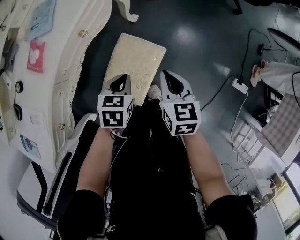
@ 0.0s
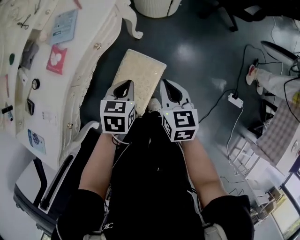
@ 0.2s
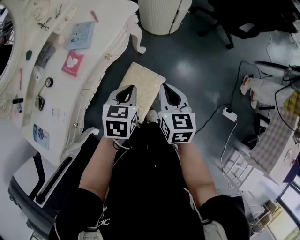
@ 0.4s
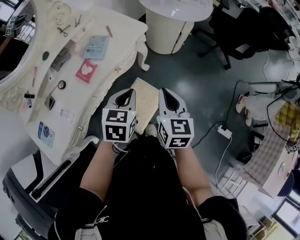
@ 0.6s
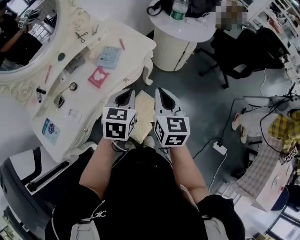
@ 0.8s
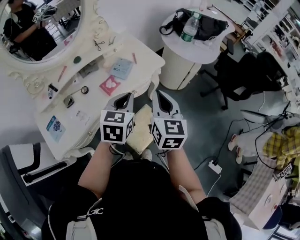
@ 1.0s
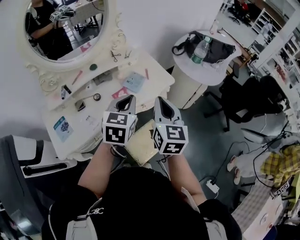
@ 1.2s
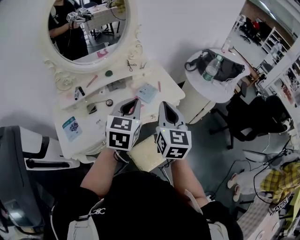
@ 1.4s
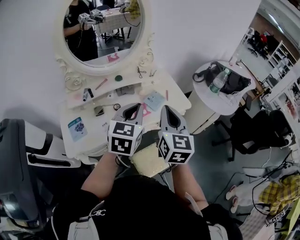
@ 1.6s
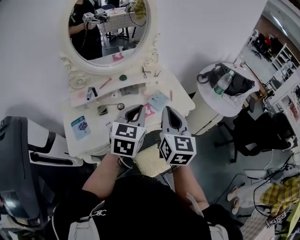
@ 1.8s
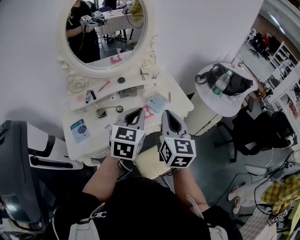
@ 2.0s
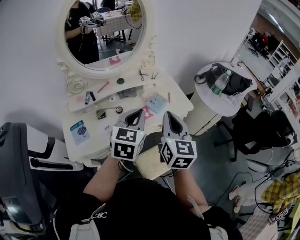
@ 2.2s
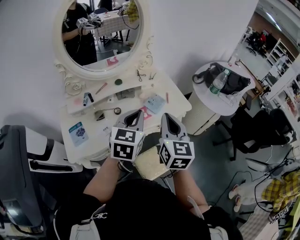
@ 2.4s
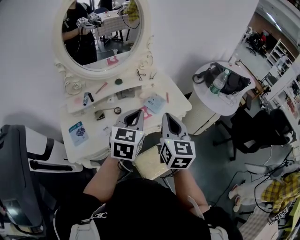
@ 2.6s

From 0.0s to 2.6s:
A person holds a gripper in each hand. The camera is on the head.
From 0.0s to 1.2s: Both grippers move upward, about 40 cm. The left gripper angles its fingers upward, by some 30 degrees. Meanwhile the right gripper rotates roughly 40 degrees.
From 1.2s to 2.6s: The grippers both shift to the left by approximately 5 cm.

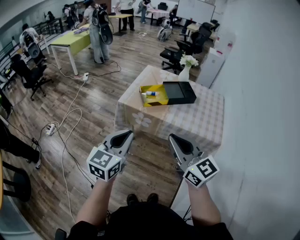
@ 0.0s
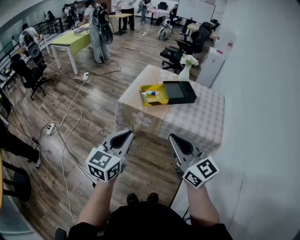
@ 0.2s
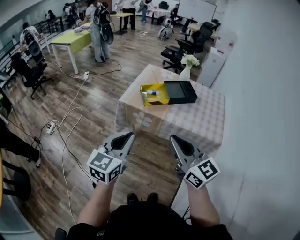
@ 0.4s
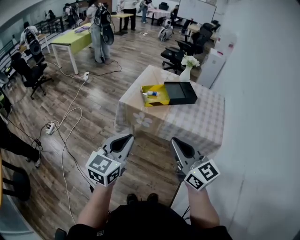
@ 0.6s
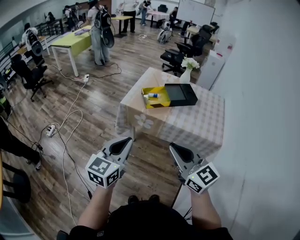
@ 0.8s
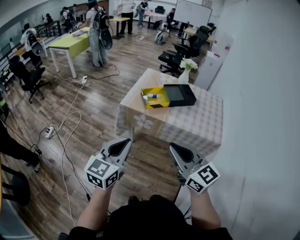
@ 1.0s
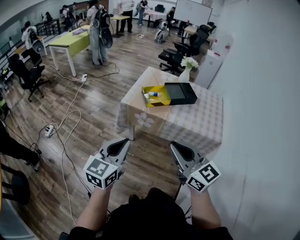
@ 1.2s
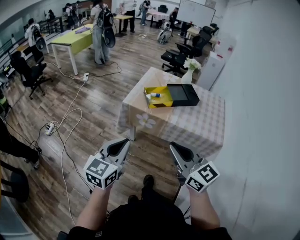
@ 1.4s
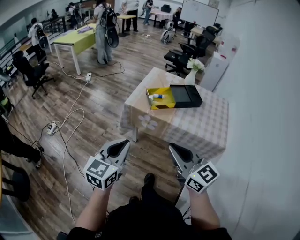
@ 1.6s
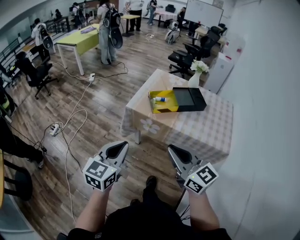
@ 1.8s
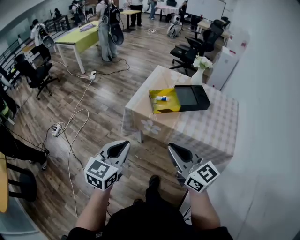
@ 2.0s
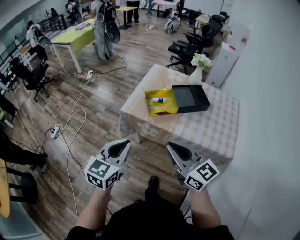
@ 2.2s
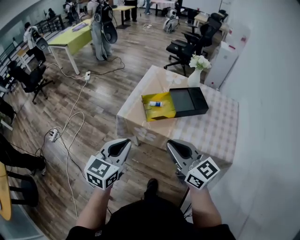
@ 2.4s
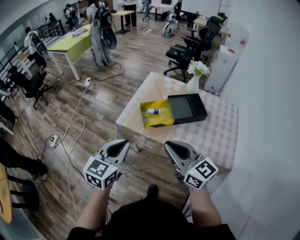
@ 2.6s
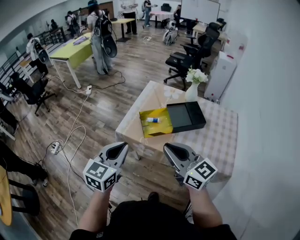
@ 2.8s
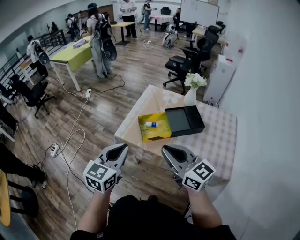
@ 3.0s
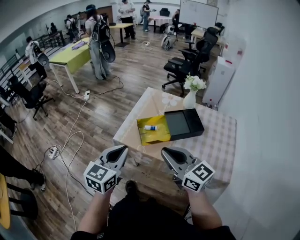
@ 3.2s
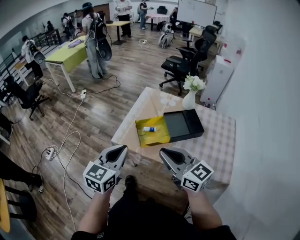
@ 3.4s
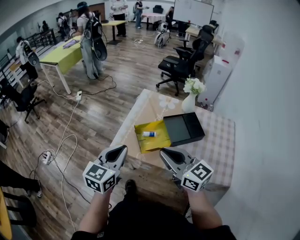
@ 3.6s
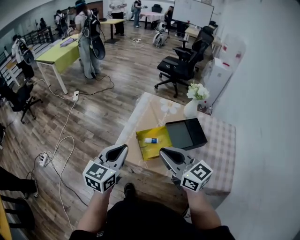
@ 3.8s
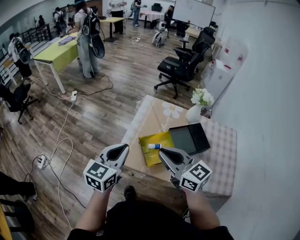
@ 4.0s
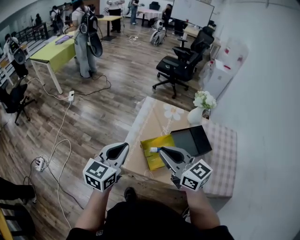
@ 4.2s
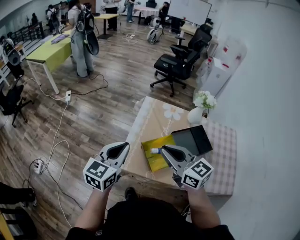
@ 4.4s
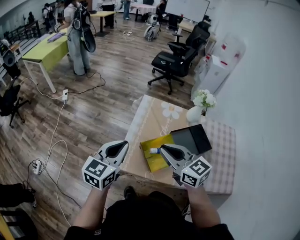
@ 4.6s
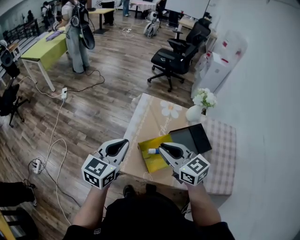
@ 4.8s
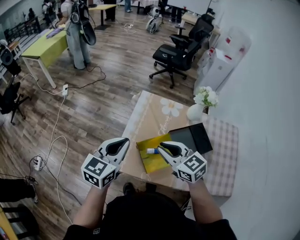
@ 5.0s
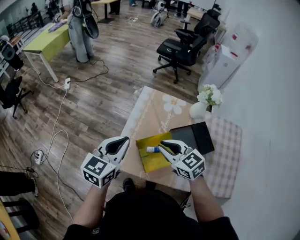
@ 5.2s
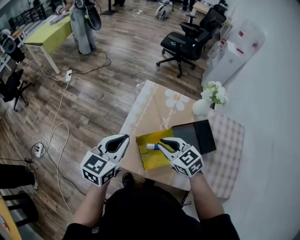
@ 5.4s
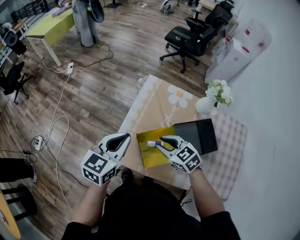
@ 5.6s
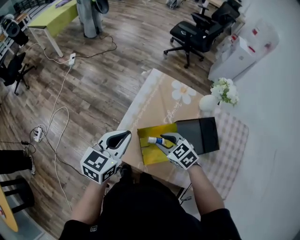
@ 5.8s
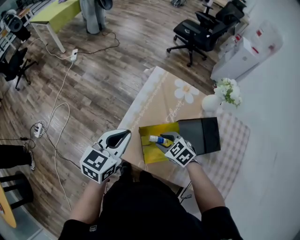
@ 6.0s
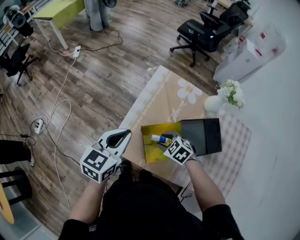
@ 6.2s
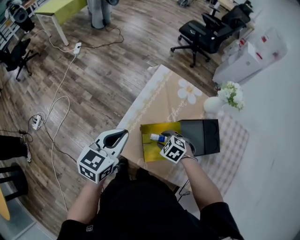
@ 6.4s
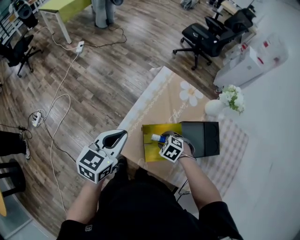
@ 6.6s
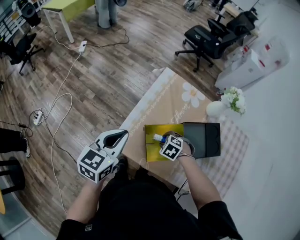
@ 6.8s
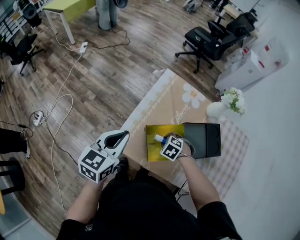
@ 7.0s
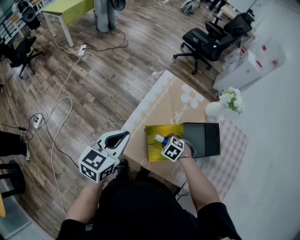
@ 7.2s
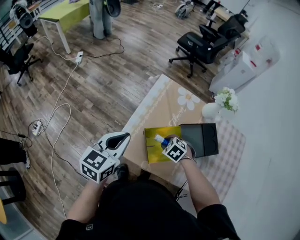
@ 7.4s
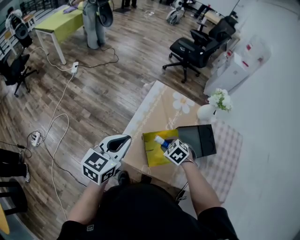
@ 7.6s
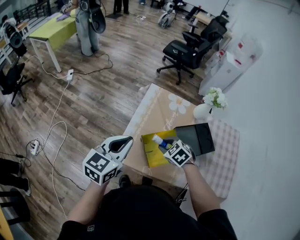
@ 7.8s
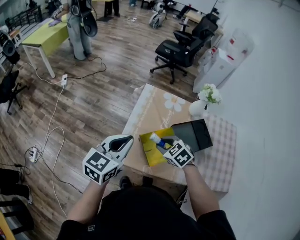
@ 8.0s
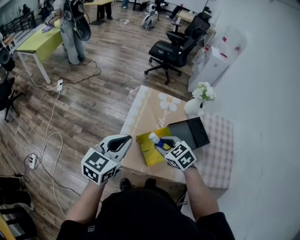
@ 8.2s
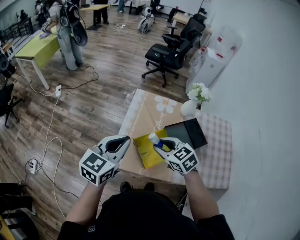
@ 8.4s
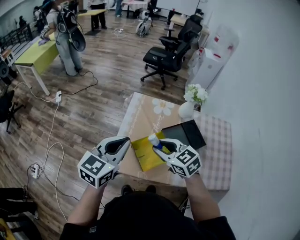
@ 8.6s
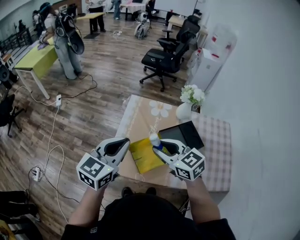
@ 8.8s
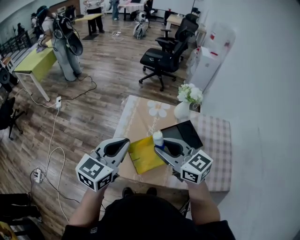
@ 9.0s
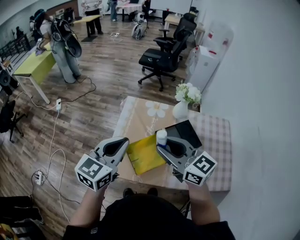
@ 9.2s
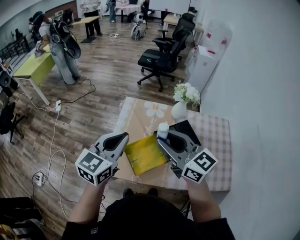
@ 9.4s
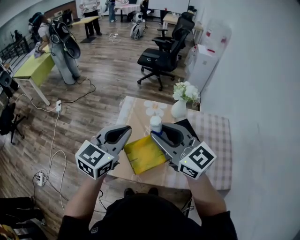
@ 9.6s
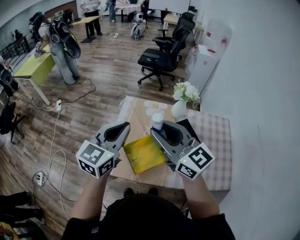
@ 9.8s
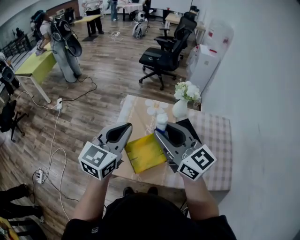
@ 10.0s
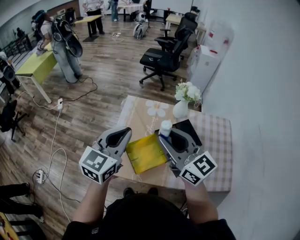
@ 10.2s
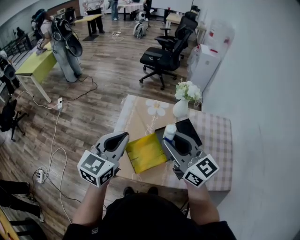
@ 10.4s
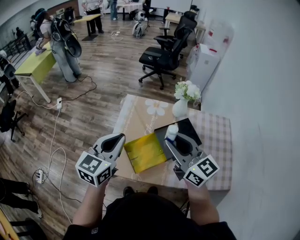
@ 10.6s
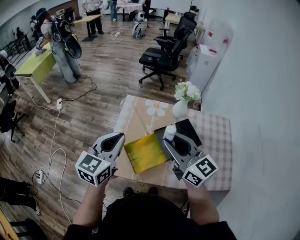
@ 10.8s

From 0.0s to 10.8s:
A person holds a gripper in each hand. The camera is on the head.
From 0.0s to 1.6s: The left gripper moves to the left, roughly 5 cm, while the right gripper changes place by roughly 5 cm.
From 1.6s to 3.0s: Both grippers travel together forward and to the right, some 25 cm.
From 3.0s to 4.6s: The two grippers go about 25 cm forward.
From 4.6s to 6.2s: The right gripper moves downward, approximately 25 cm, tilts its fingers some 50 degrees downward, and opens, while the left gripper goes approximately 10 cm downward.
From 6.2s to 7.8s: The right gripper goes approximately 5 cm upward; the left gripper ends up about 5 cm from where it was.
From 7.8s to 9.2s: The right gripper goes roughly 25 cm upward, and points its fingers approximately 60 degrees further upward. The left gripper goes about 15 cm to the right and upward.

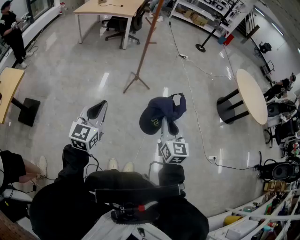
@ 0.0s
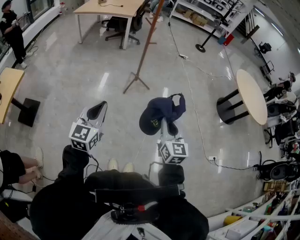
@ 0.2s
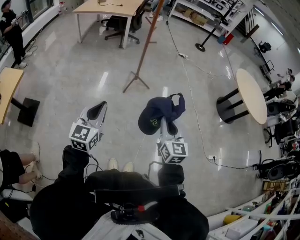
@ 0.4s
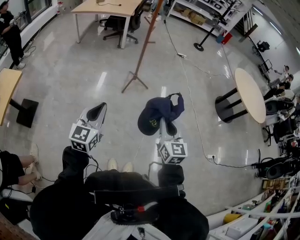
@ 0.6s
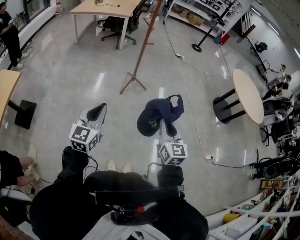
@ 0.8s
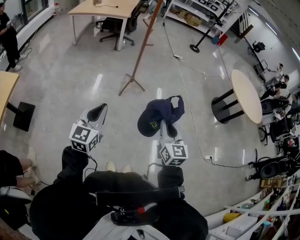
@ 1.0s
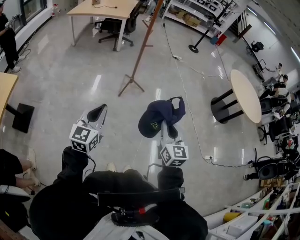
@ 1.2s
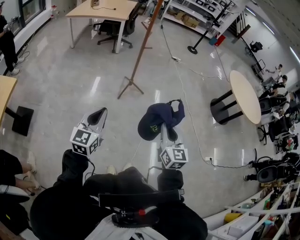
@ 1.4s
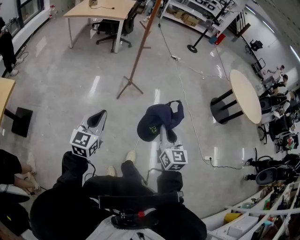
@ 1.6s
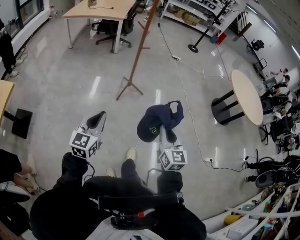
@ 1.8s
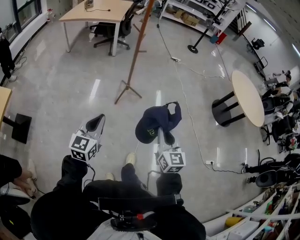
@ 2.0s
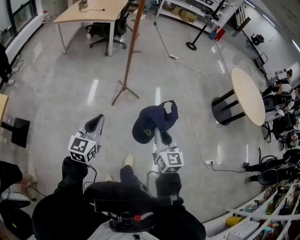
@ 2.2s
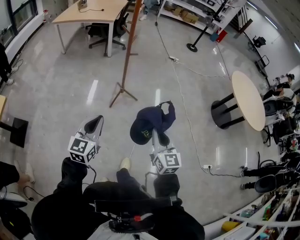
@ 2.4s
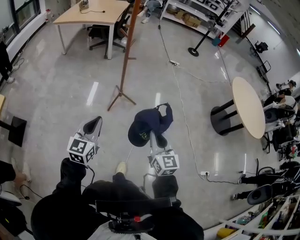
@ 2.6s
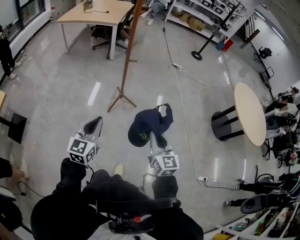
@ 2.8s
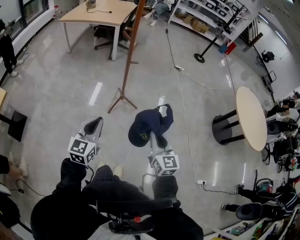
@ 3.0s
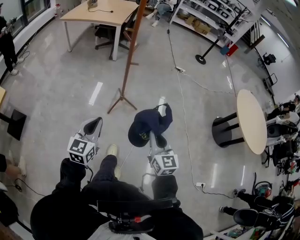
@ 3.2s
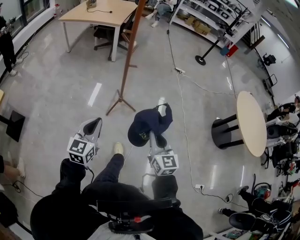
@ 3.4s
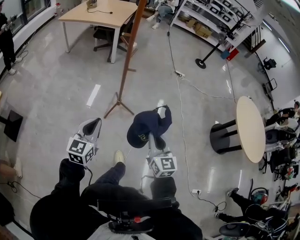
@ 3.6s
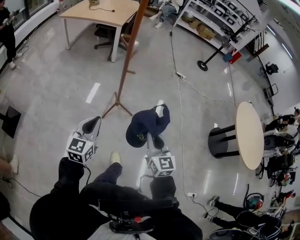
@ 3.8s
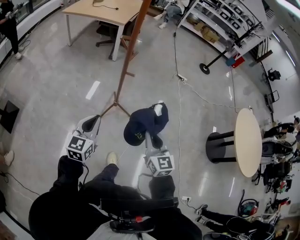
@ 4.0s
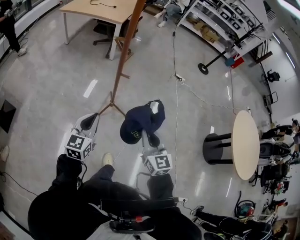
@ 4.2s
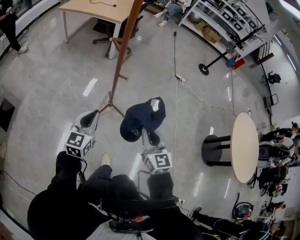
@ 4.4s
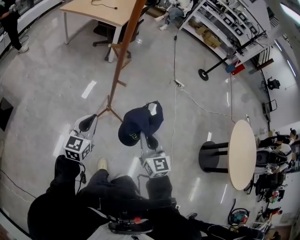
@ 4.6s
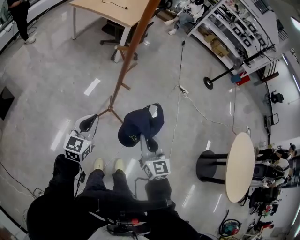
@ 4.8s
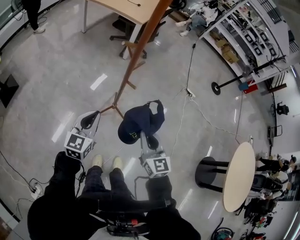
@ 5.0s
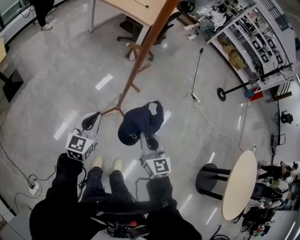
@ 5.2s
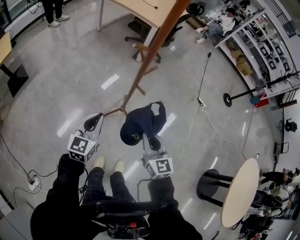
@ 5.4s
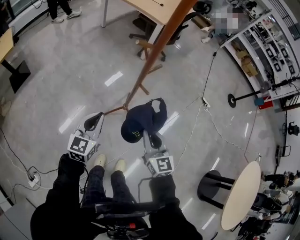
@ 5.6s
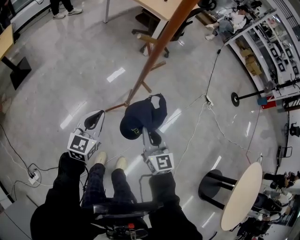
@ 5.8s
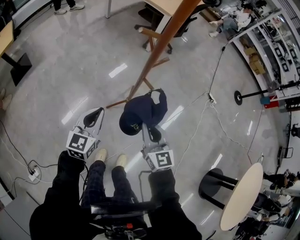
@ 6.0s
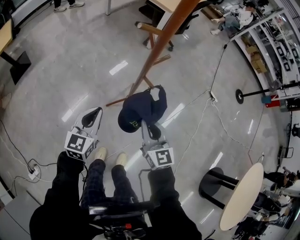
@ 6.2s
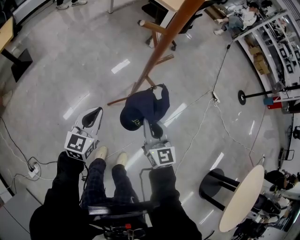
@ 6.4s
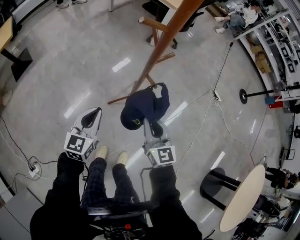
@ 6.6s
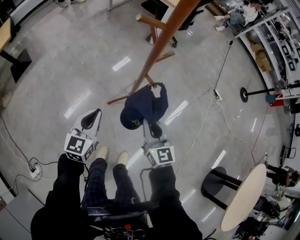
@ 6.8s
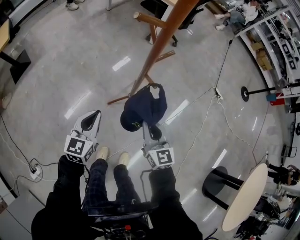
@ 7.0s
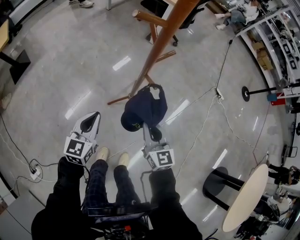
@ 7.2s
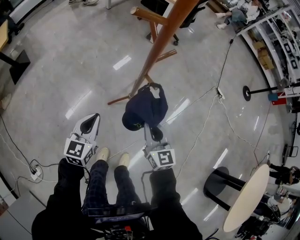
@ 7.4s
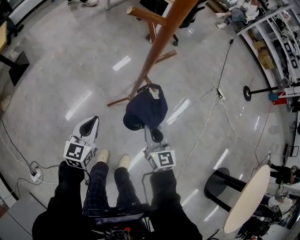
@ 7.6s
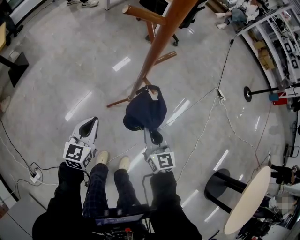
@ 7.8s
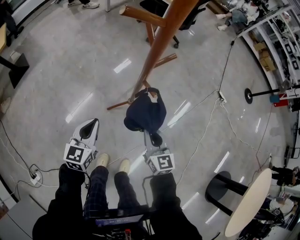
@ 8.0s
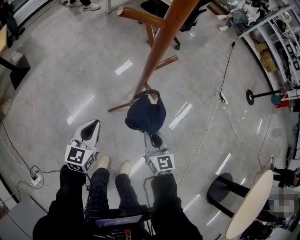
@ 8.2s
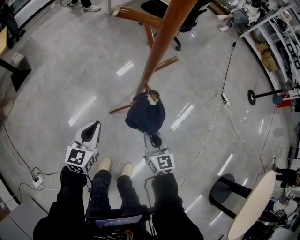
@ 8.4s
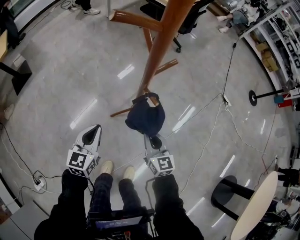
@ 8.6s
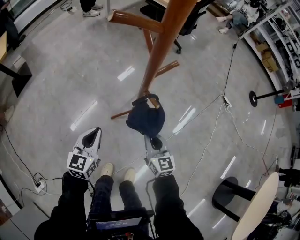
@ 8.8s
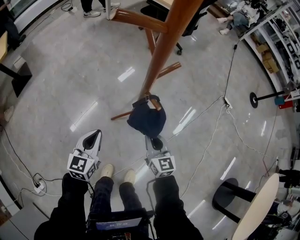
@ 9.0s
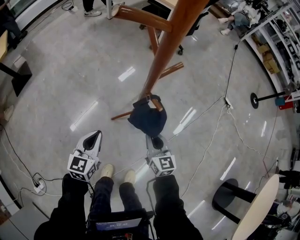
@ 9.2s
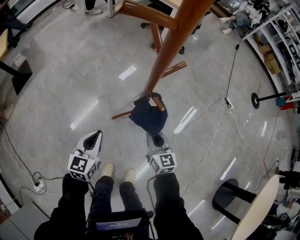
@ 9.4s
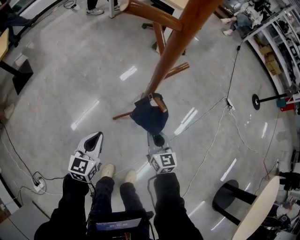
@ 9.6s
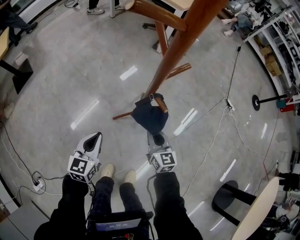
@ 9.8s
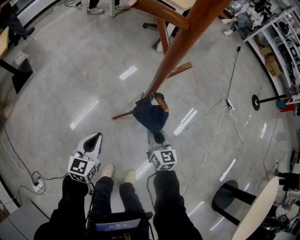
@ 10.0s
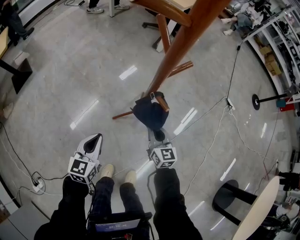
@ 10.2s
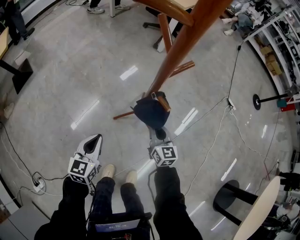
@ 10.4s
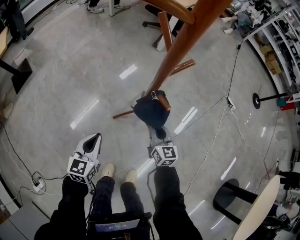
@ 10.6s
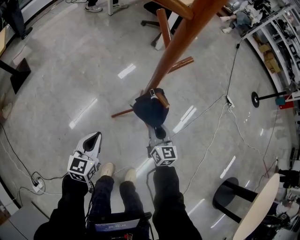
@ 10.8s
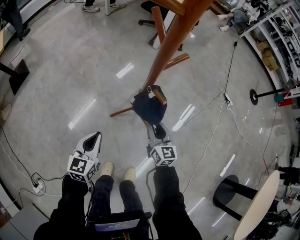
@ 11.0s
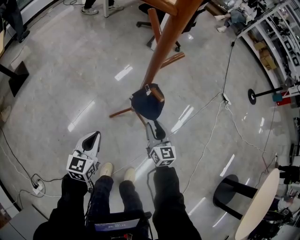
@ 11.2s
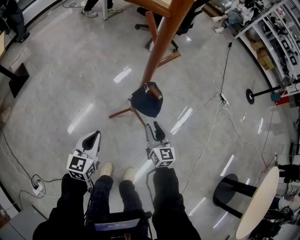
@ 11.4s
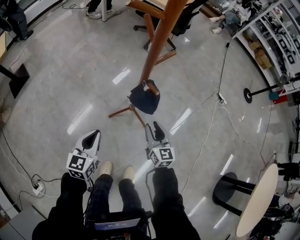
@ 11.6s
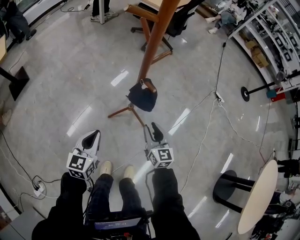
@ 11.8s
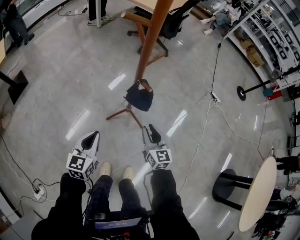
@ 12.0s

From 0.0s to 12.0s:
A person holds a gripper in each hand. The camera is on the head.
From 0.0s to 1.6s: The left gripper shifts by roughly 5 cm.
From 1.6s to 3.0s: The right gripper shifts roughly 25 cm forward, while the left gripper shifts some 25 cm forward and to the right.
From 3.0s to 4.4s: The grippers both shift forward by roughly 25 cm.
From 4.4s to 6.0s: The right gripper goes some 20 cm forward and downward, and turns by about 20 degrees, while the left gripper moves downward and forward, approximately 15 cm, and changes its angle by approximately 20 degrees.
From 6.0s to 7.6s: The two grippers go some 10 cm downward.
From 7.6s to 9.0s: The left gripper changes place by some 5 cm. The right gripper heads downward, covering about 10 cm.
From 9.0s to 10.4s: The right gripper shifts roughly 5 cm forward.
From 10.4s to 12.0s: The left gripper travels upward and backward by some 10 cm; the right gripper shifts roughly 15 cm backward and upward, and opens its fingers.
